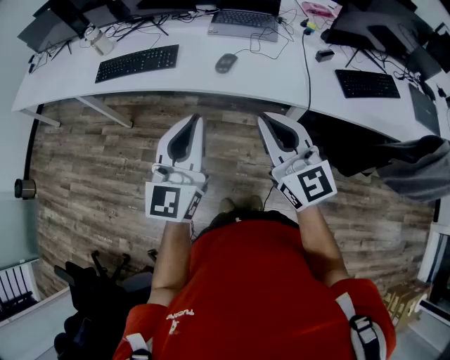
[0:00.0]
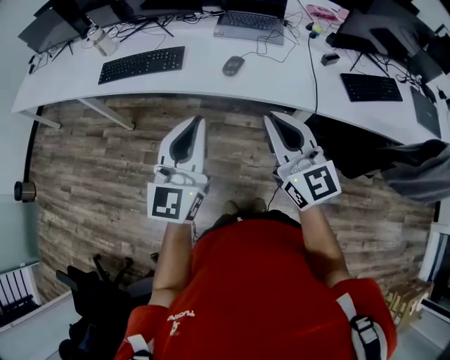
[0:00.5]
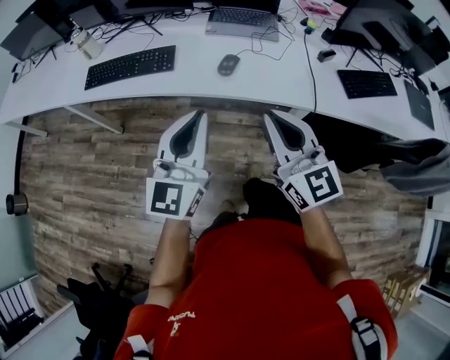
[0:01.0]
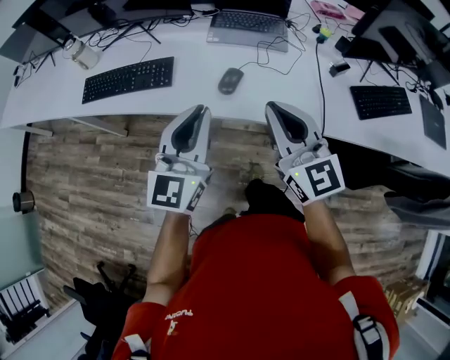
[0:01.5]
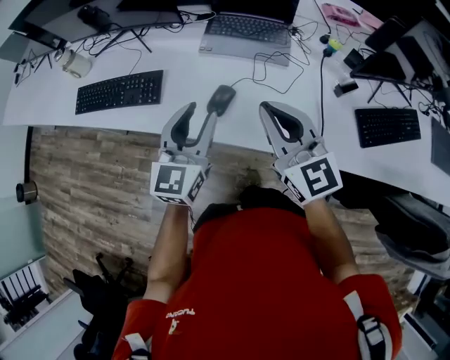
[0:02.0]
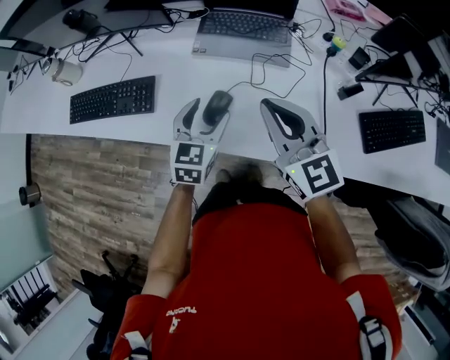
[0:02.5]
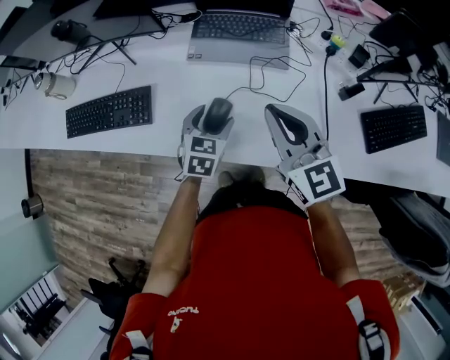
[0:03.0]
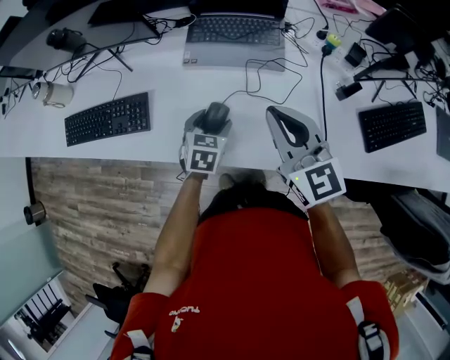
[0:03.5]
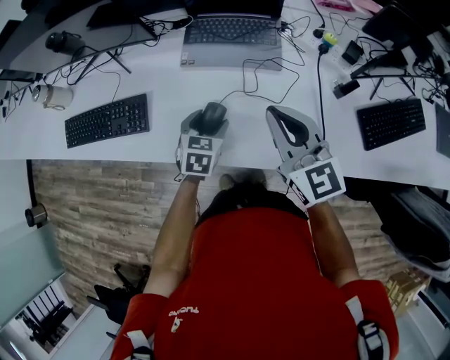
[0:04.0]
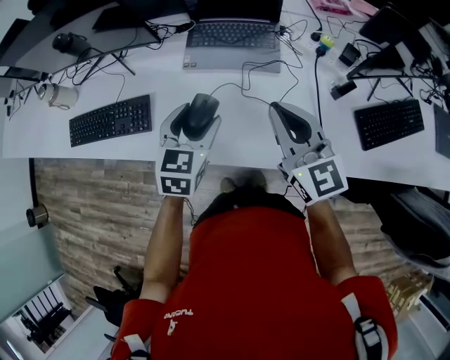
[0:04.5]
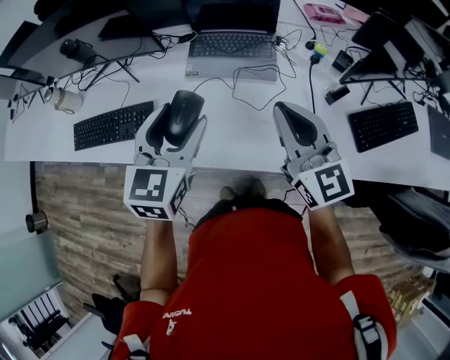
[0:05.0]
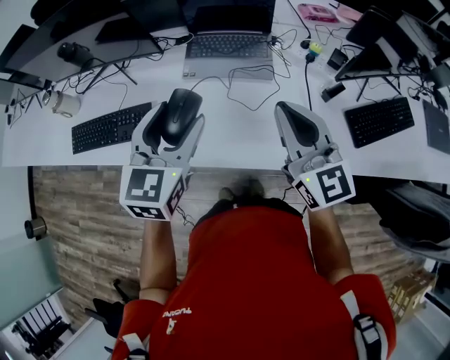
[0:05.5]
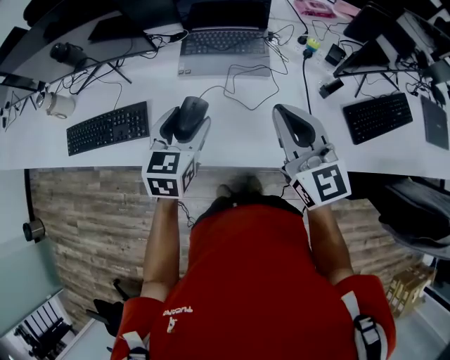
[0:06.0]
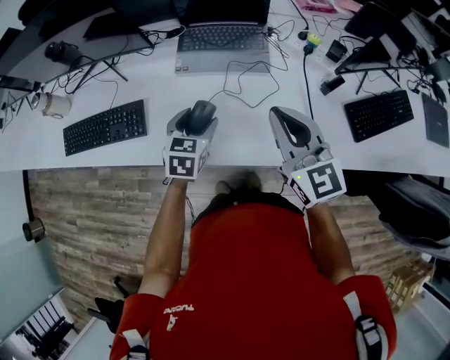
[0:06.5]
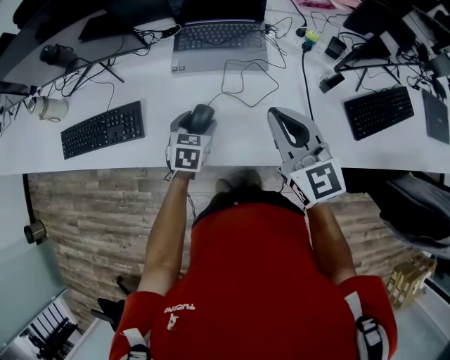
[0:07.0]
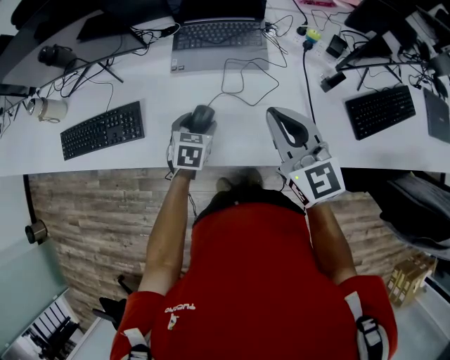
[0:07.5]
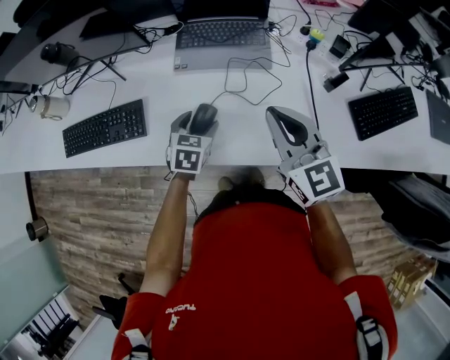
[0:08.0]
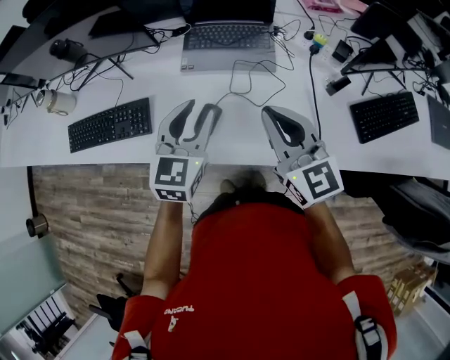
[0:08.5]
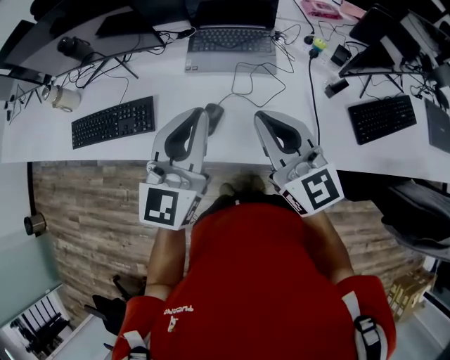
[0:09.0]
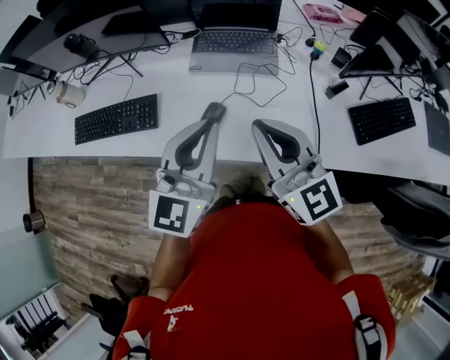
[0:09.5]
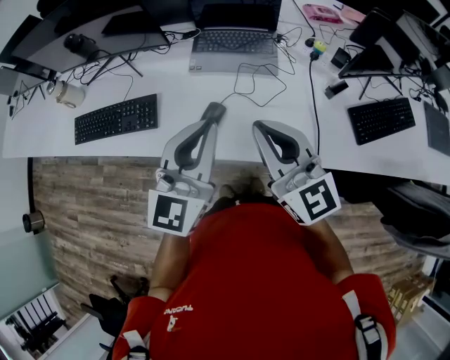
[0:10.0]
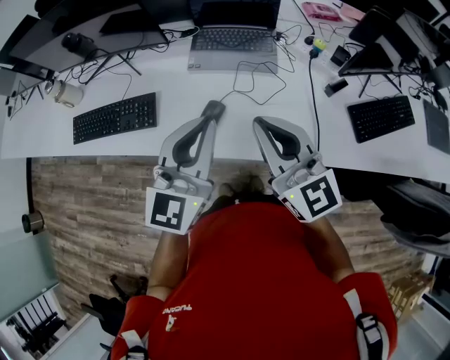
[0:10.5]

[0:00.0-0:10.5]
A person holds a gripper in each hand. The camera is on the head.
0:00.0 to 0:02.0: The right gripper heads forward, covering about 25 cm, while the left gripper heads forward and downward, covering roughly 30 cm, and opens.
0:02.0 to 0:04.0: The left gripper heads downward and forward, covering some 20 cm, tips its fingers downward by about 40 degrees, and opens. The right gripper shifts about 5 cm forward.
0:04.0 to 0:06.5: The left gripper reaches some 25 cm upward, then returns, while the right gripper goes upward and returns, some 10 cm each way.
0:06.5 to 0:08.5: The left gripper shifts roughly 15 cm upward, changes its angle by about 20 degrees, and closes up.
0:08.5 to 0:10.5: The left gripper travels upward and backward by roughly 15 cm, and closes, while the right gripper moves backward and upward, roughly 10 cm.

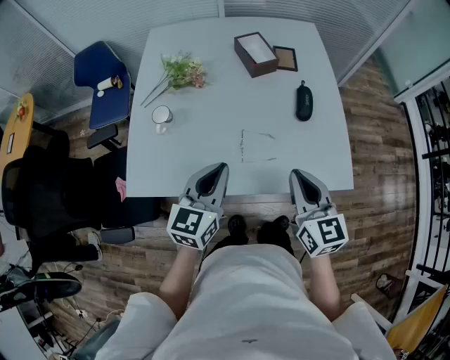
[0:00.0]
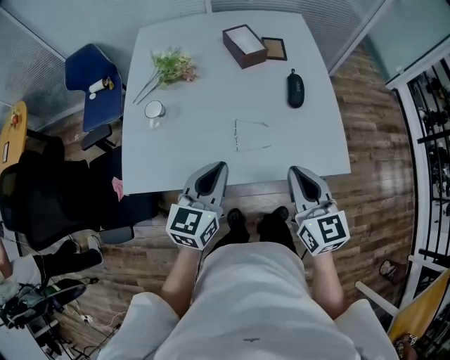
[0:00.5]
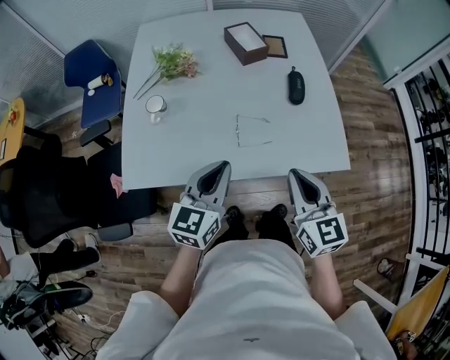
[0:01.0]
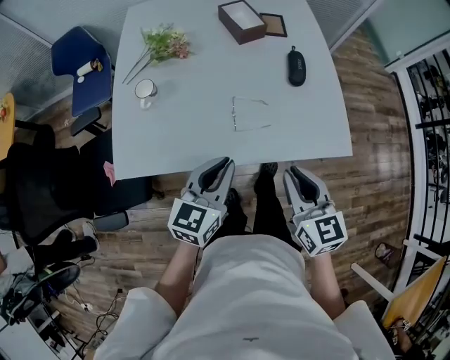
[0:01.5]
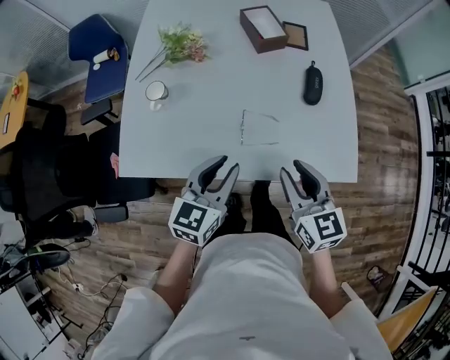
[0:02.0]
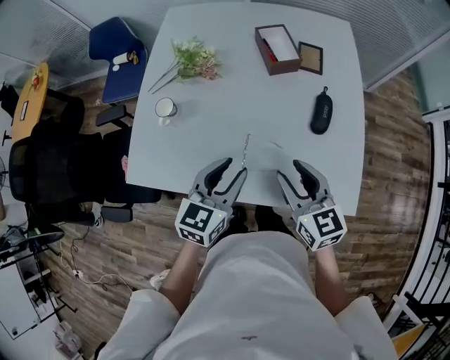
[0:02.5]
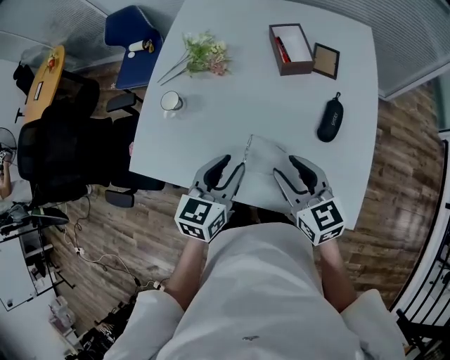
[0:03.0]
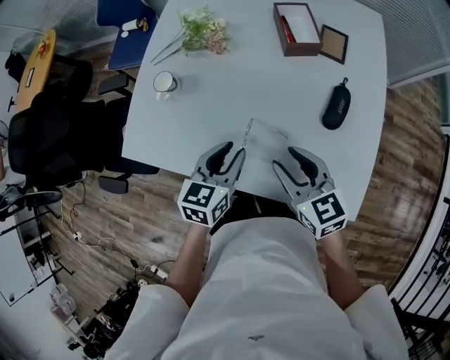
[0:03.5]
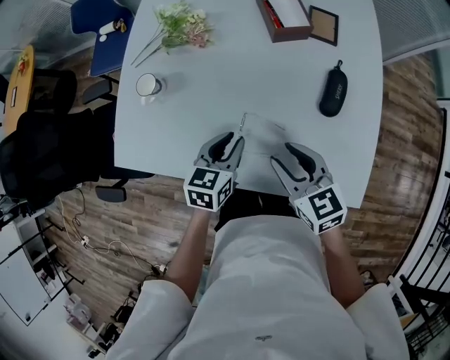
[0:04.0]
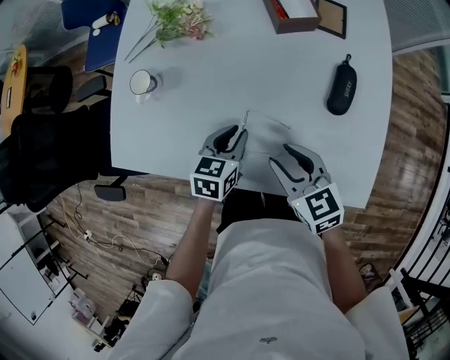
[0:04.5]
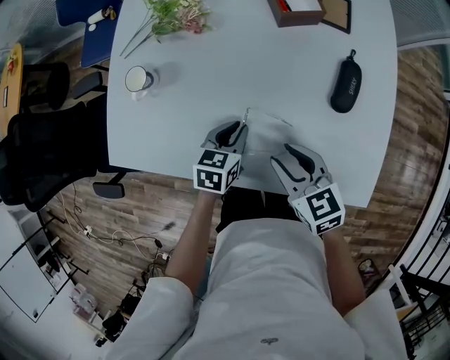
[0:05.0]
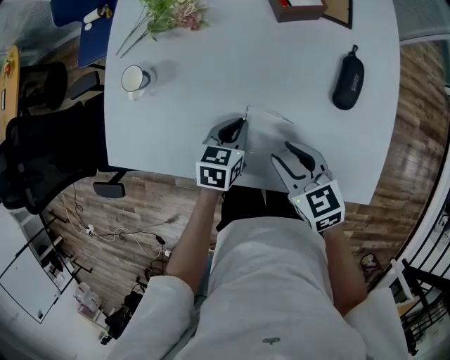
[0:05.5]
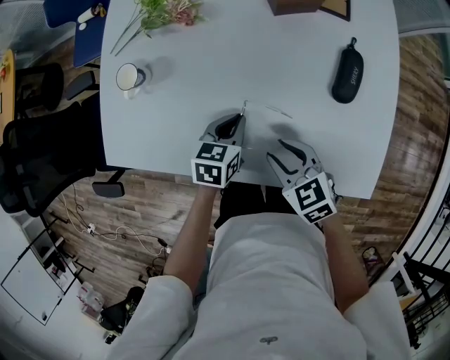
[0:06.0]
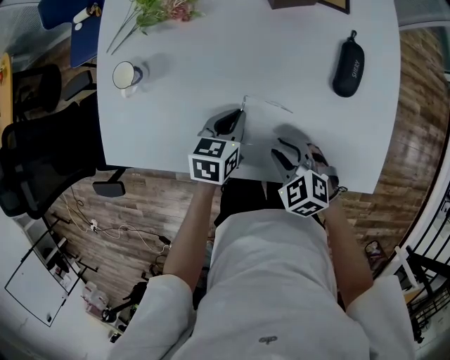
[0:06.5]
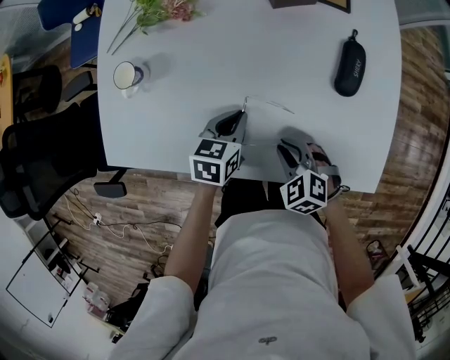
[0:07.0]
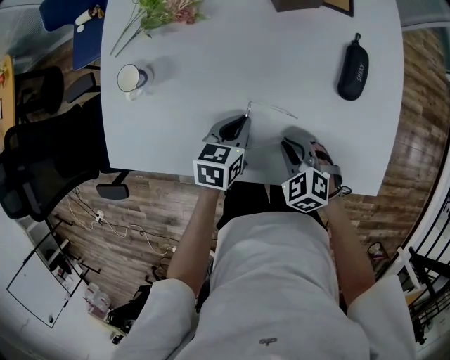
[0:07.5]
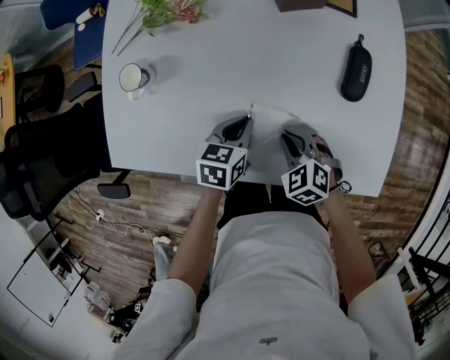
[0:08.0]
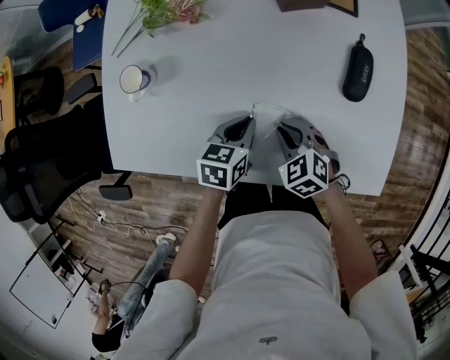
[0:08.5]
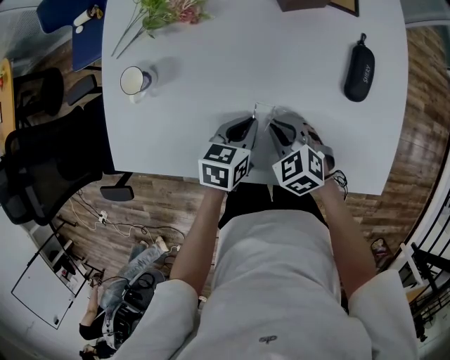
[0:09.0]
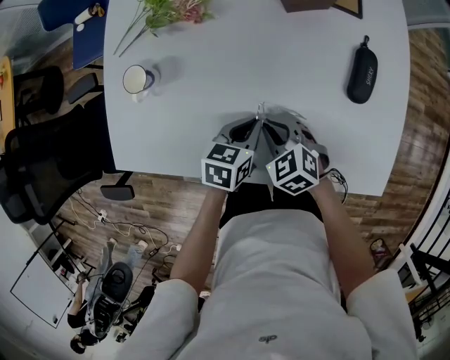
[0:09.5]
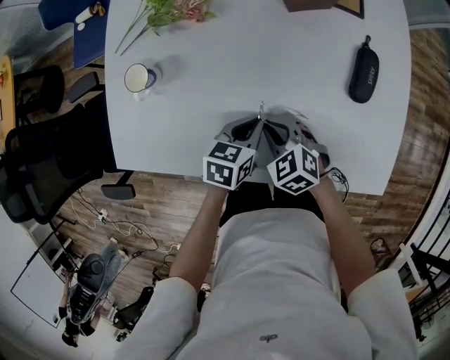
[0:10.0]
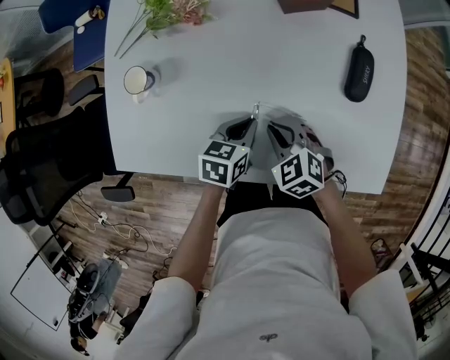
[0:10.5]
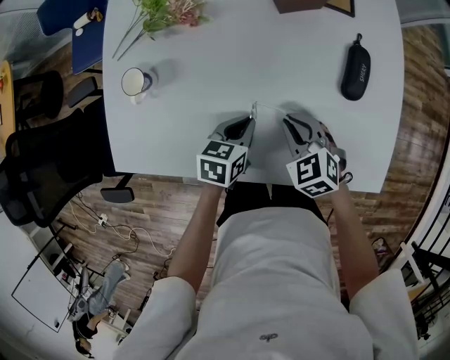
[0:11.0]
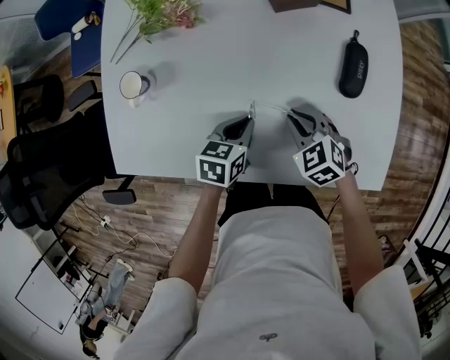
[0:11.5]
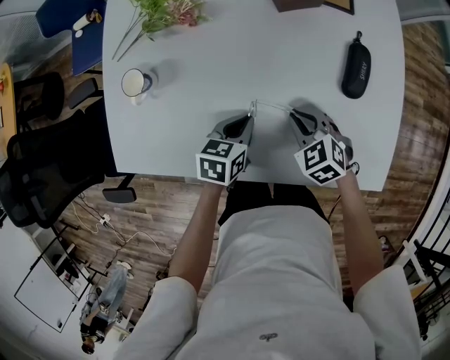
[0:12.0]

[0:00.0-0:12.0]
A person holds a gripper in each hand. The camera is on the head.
0:00.0 to 0:02.0: The left gripper changes place by approximately 5 cm, and opens its fingers. The right gripper opens.
0:02.0 to 0:04.0: The right gripper moves forward and downward, about 15 cm, and turns by roughly 20 degrees. The left gripper shifts about 15 cm downward and forward, and changes its angle by some 20 degrees.
0:04.0 to 0:06.0: The grippers both shift downward by about 10 cm.
0:06.0 to 0:08.0: The right gripper travels downward by about 5 cm, turns by about 20 degrees, and closes up.
0:08.0 to 0:10.0: The right gripper is displaced to the left by approximately 5 cm.
0:10.0 to 0:12.0: The right gripper is displaced to the right by about 10 cm.

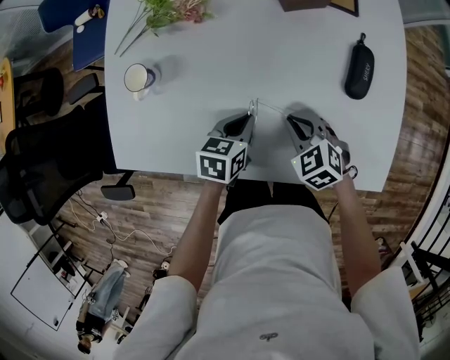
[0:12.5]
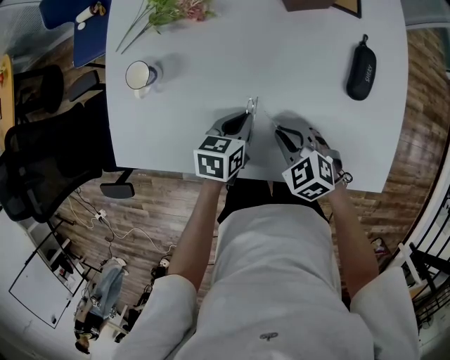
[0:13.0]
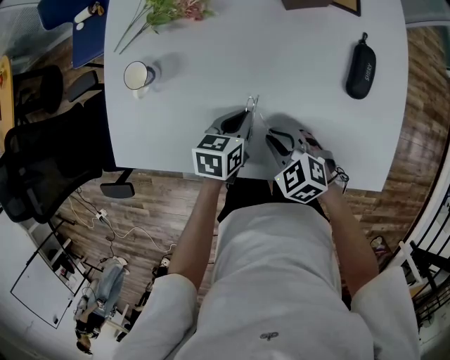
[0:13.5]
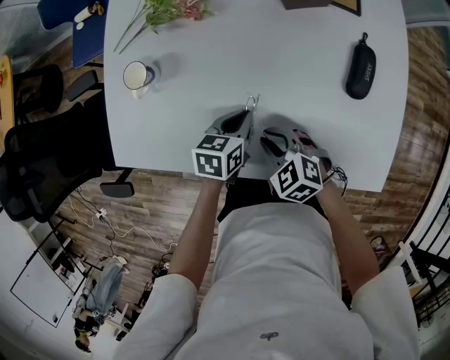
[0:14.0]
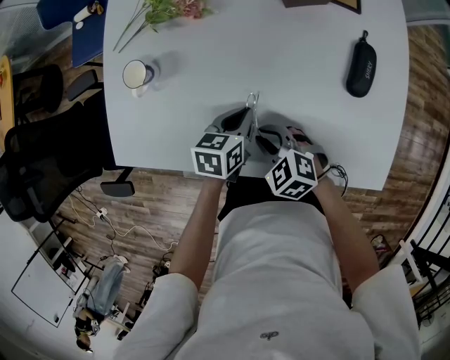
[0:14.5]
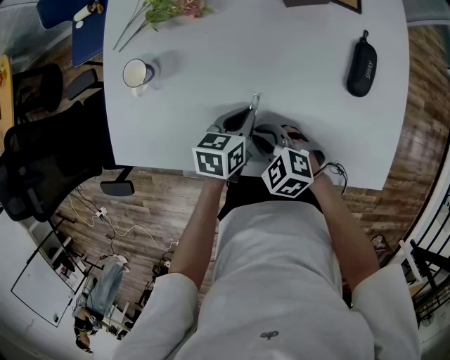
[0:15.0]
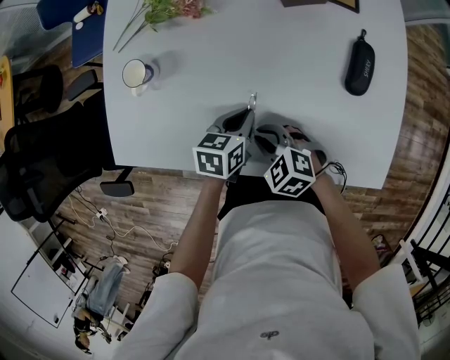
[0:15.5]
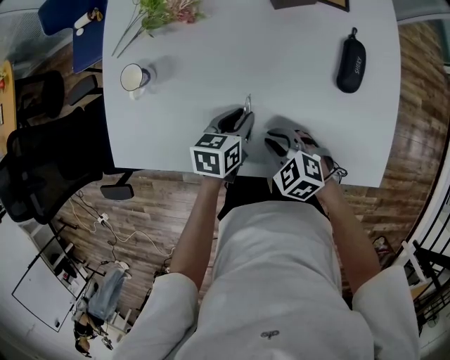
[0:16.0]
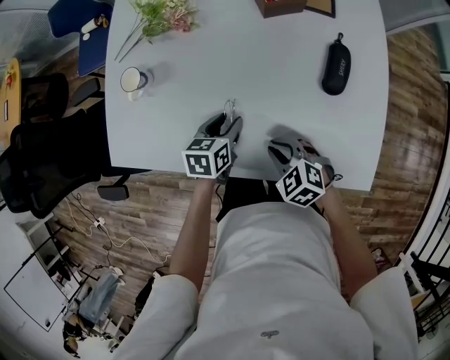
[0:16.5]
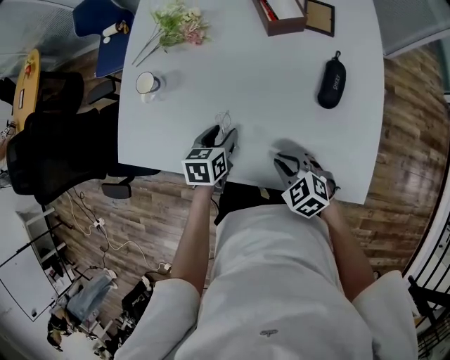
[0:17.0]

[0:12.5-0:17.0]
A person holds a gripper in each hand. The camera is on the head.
0:12.5 to 0:14.5: The right gripper travels to the left by about 10 cm.
0:14.5 to 0:17.0: The left gripper opens. Meanwhile the right gripper shifts approximately 10 cm to the right and backward.
